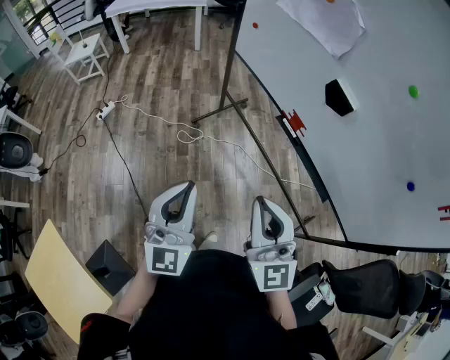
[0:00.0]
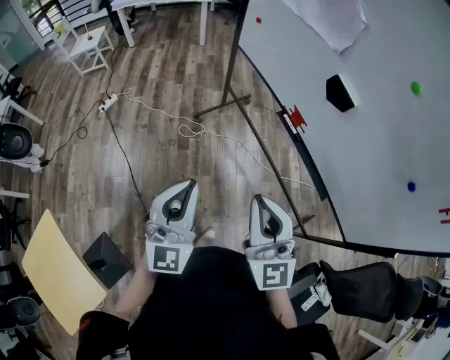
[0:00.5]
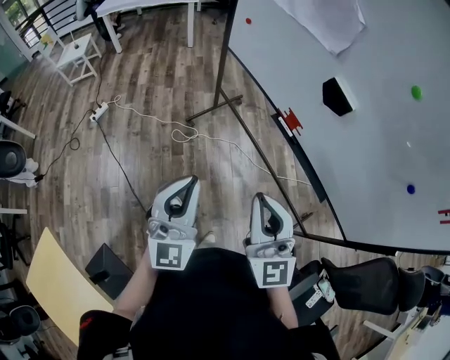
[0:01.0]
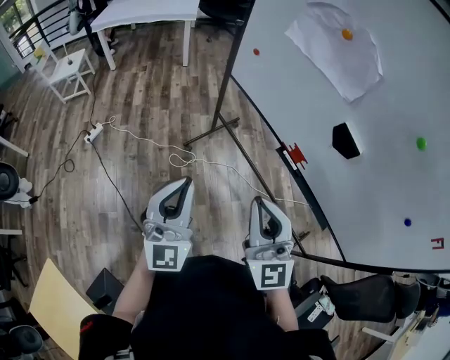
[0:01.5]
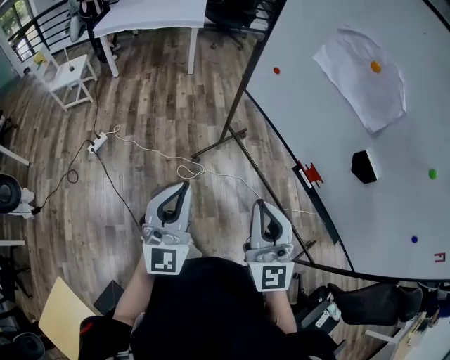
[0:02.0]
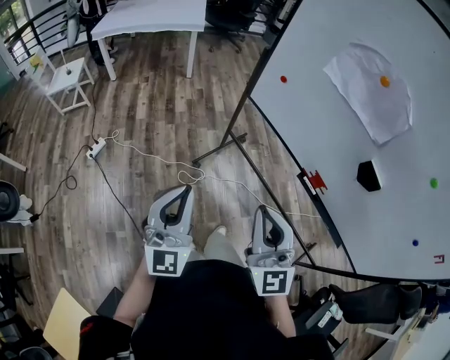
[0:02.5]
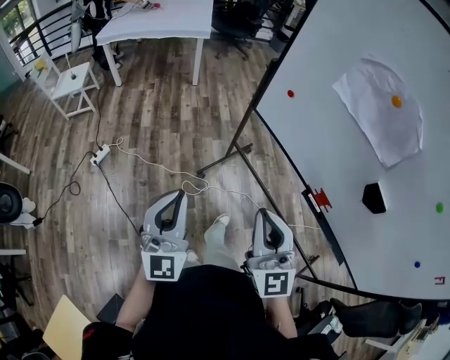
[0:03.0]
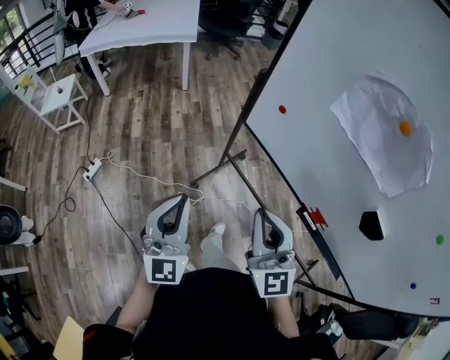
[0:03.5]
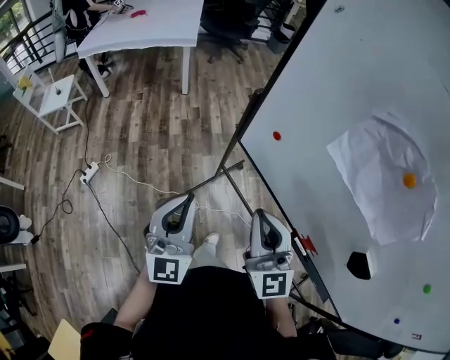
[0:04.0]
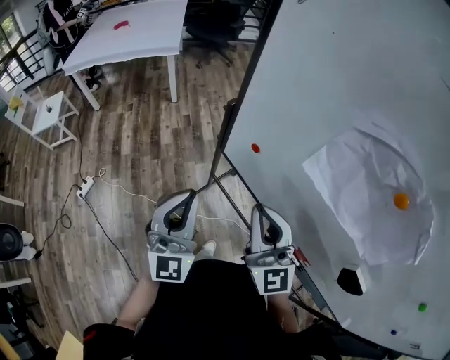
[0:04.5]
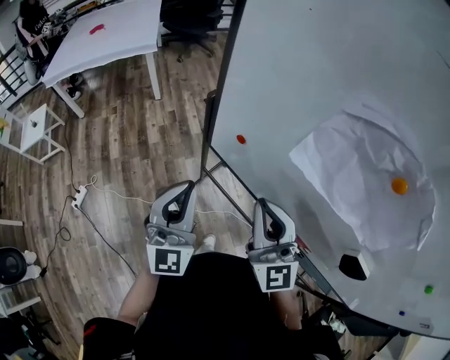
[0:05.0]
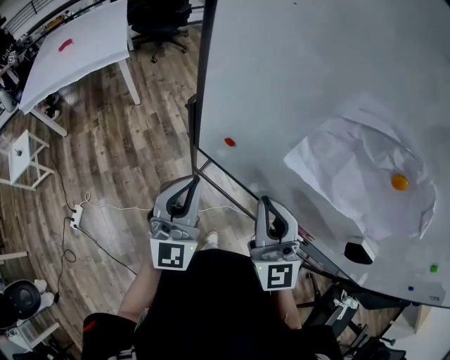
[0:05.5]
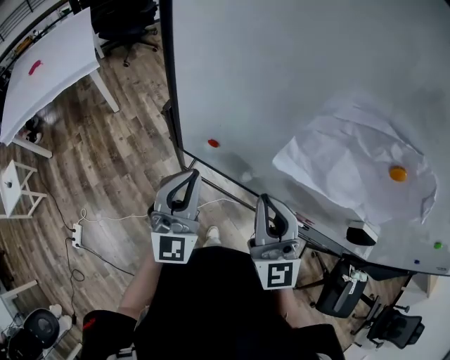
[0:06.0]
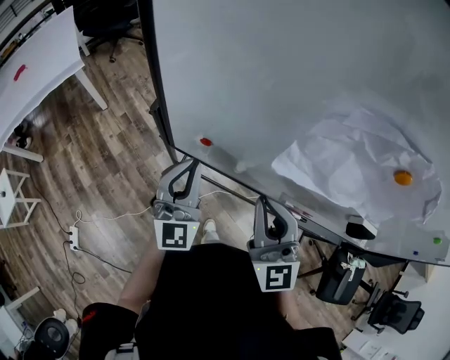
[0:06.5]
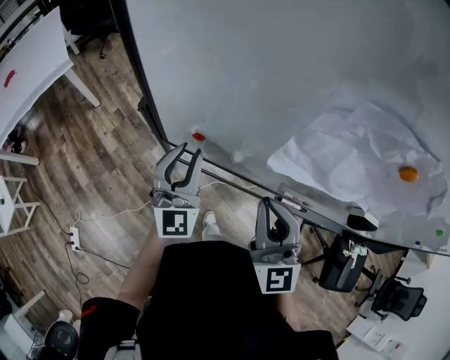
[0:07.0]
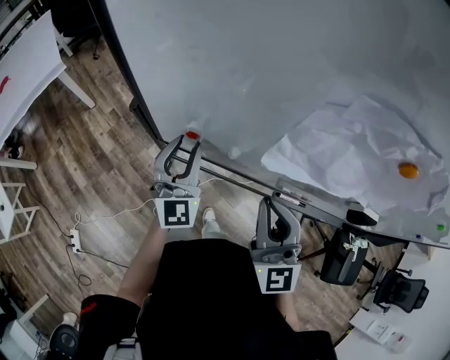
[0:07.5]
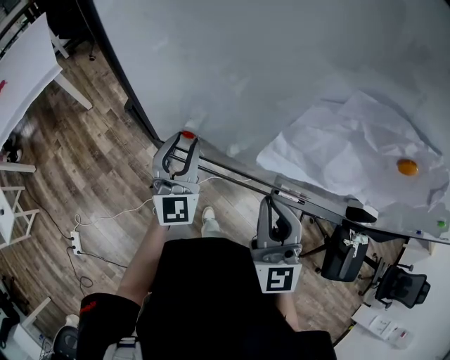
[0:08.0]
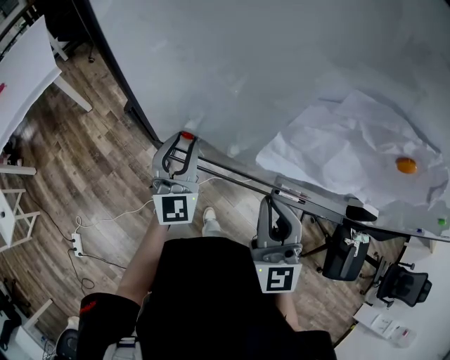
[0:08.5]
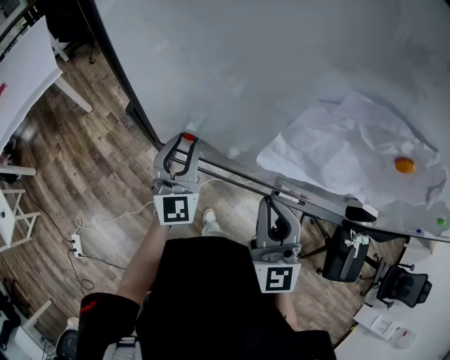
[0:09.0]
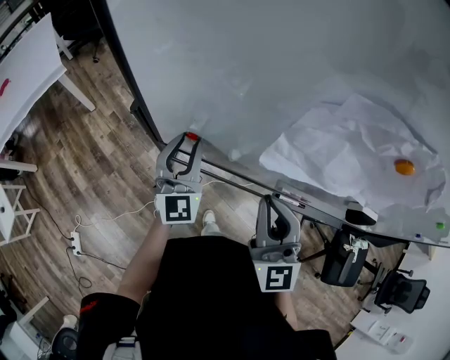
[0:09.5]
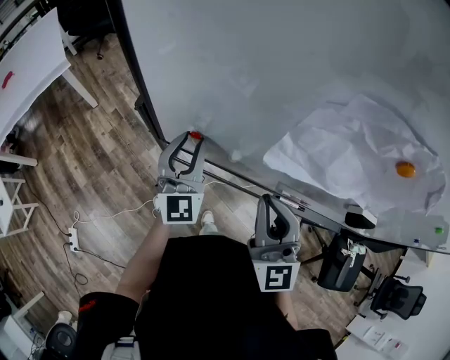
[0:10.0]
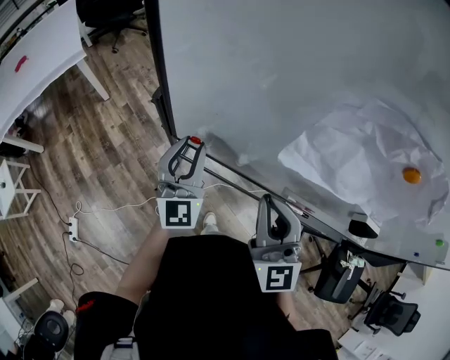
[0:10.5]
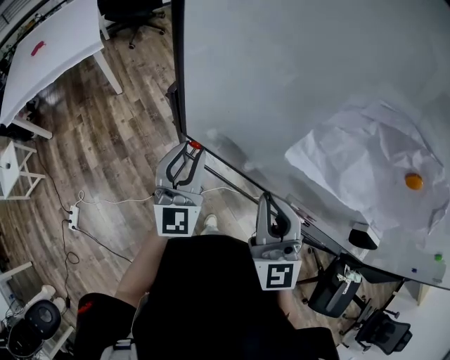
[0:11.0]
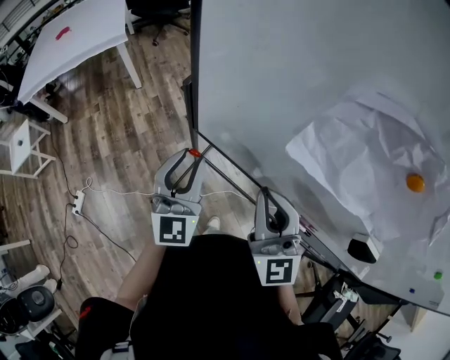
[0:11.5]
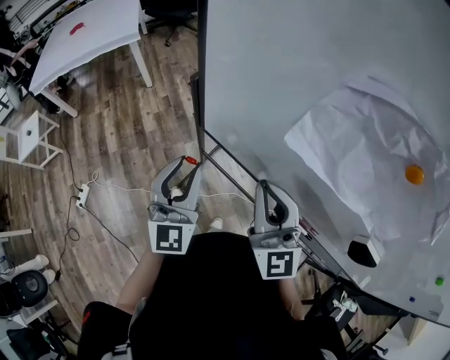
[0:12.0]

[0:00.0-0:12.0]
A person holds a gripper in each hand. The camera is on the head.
0:00.0 to 0:02.0: The two grippers go roughly 25 cm forward and to the left.
0:02.0 to 0:04.0: Both grippers travel together forward, about 30 cm.
0:04.0 to 0:06.0: The left gripper ends up roughly 25 cm from where it was, and changes its angle by some 30 degrees. Meanwhile the right gripper shifts by approximately 15 cm, and turns by approximately 30 degrees.
0:06.0 to 0:08.0: The left gripper is displaced forward and downward by roughly 15 cm, and opens its fingers.
0:08.0 to 0:10.0: The grippers make only small movements.
0:10.0 to 0:12.0: The left gripper goes roughly 15 cm backward and to the left, while the right gripper swivels some 20 degrees.

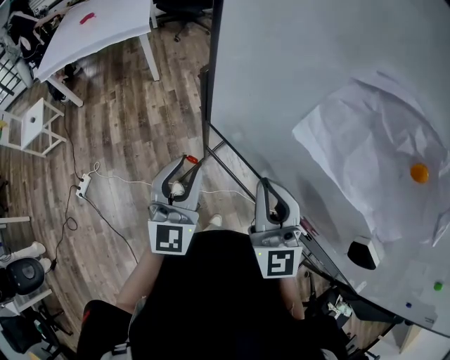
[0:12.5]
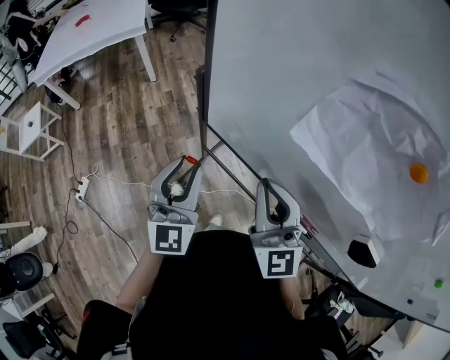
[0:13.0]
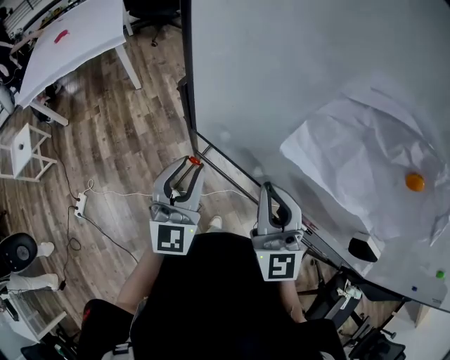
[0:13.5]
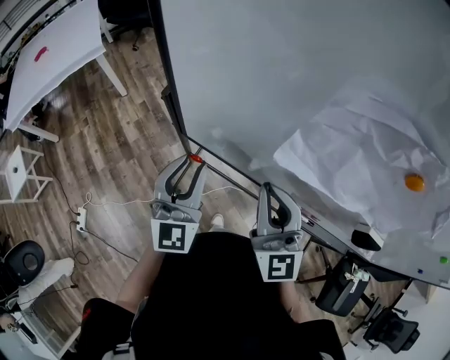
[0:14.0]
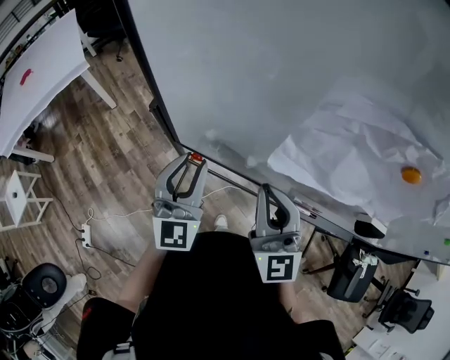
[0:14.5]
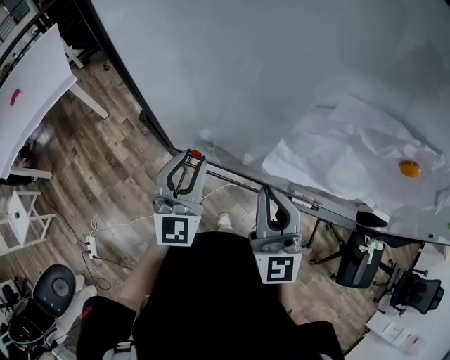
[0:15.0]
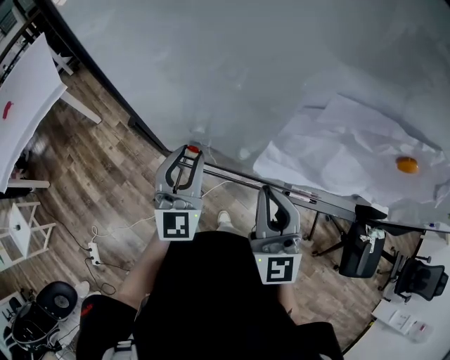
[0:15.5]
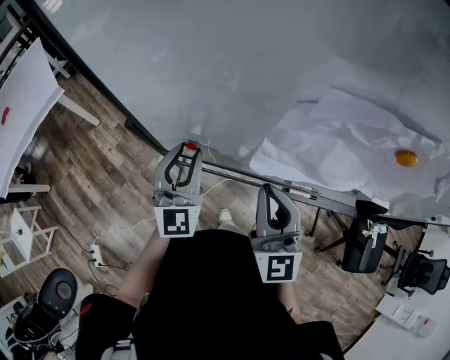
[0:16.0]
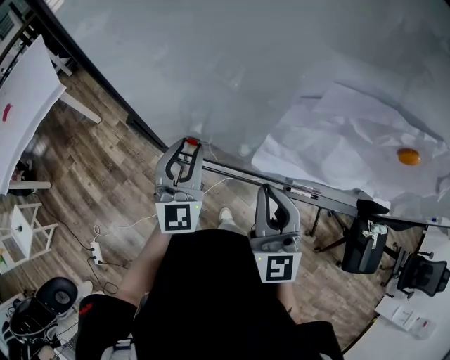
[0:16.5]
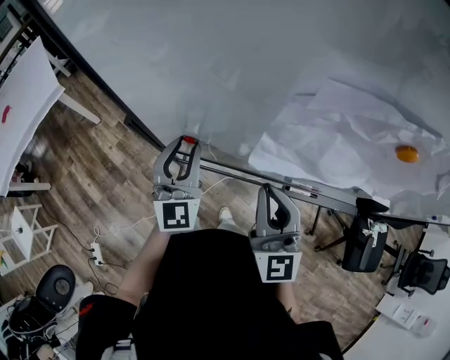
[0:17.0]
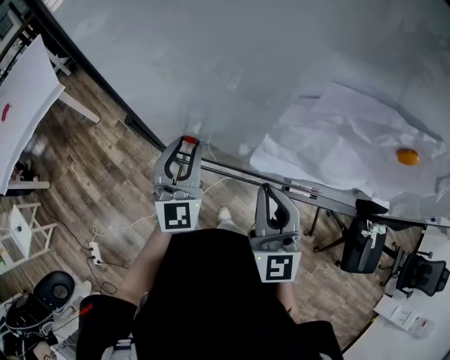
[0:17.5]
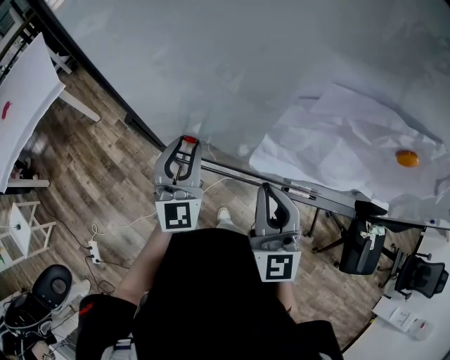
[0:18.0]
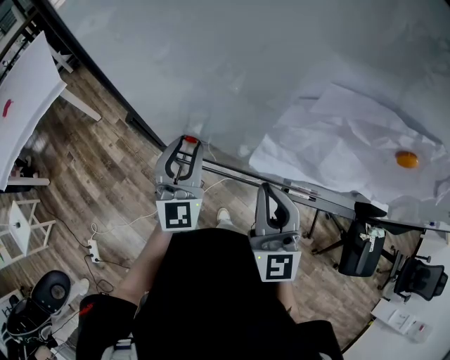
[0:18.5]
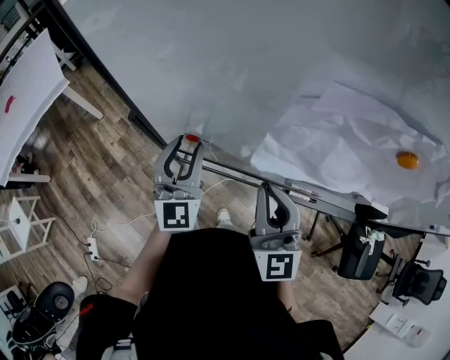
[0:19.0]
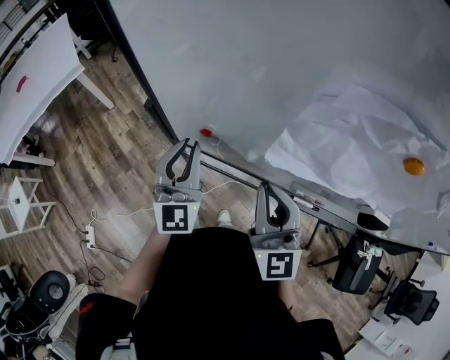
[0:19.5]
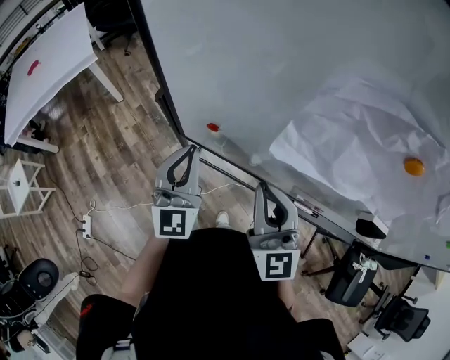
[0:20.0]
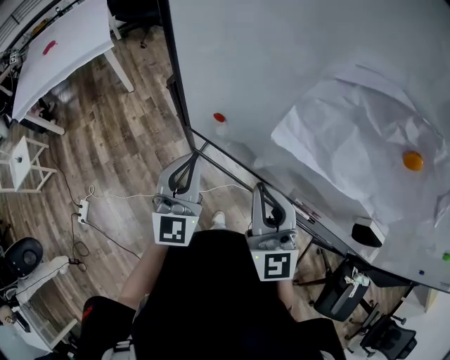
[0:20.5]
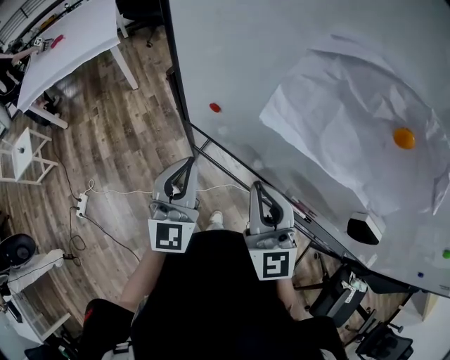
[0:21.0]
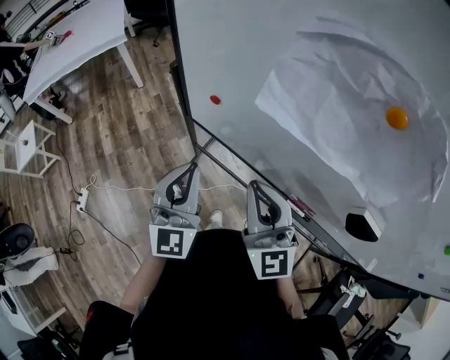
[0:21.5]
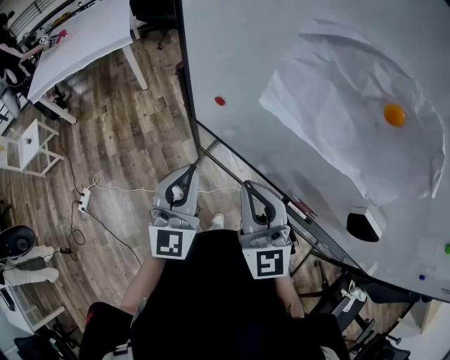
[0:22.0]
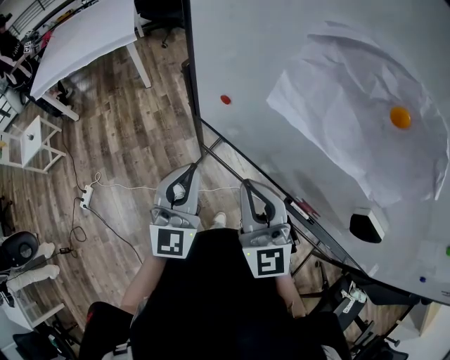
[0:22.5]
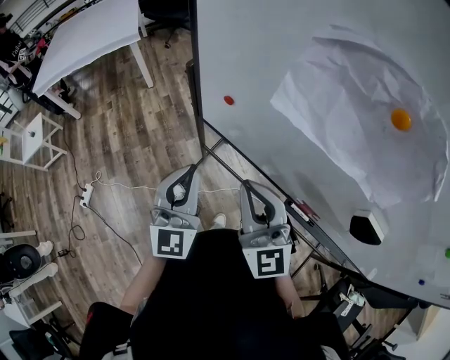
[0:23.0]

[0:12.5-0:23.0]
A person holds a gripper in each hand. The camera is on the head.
0:12.5 to 0:14.5: The left gripper shifts some 10 cm forward and to the right, and turns by approximately 20 degrees, while the right gripper changes place by some 5 cm, and turns by approximately 20 degrees.
0:14.5 to 0:16.5: The left gripper goes approximately 5 cm forward.
0:16.5 to 0:19.0: The two grippers keep their place.
0:19.0 to 0:21.0: The right gripper goes about 5 cm backward, and rotates some 20 degrees, while the left gripper shifts about 15 cm backward, and closes its fingers.
0:21.0 to 0:23.0: The left gripper travels backward by some 5 cm.

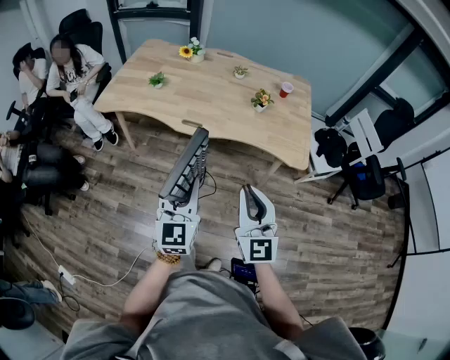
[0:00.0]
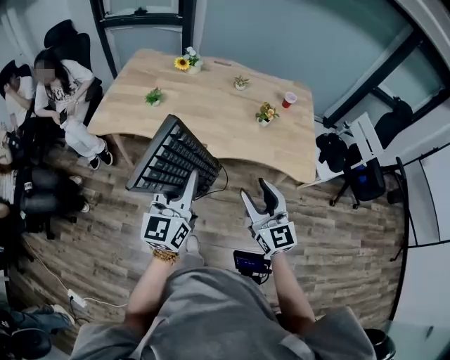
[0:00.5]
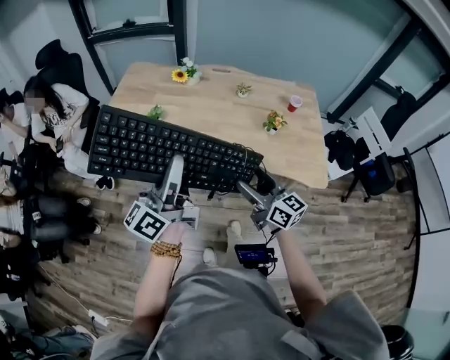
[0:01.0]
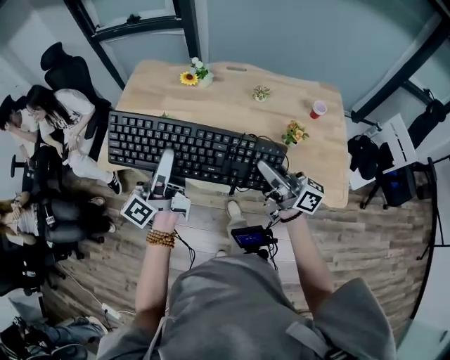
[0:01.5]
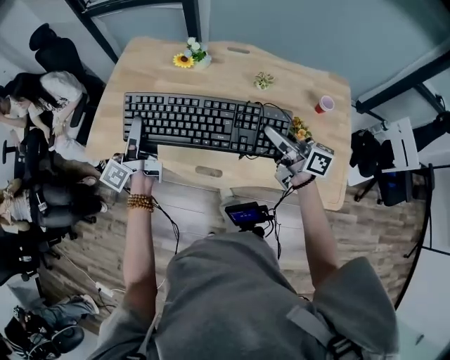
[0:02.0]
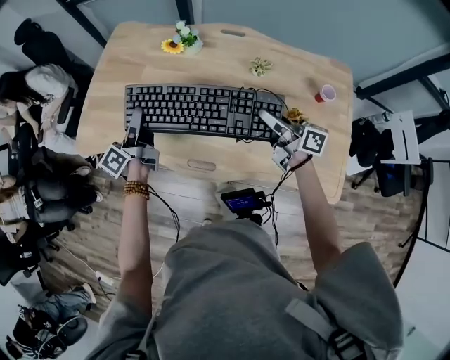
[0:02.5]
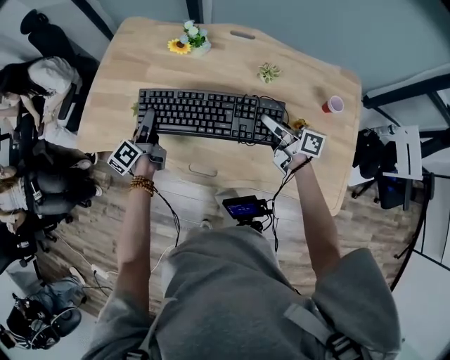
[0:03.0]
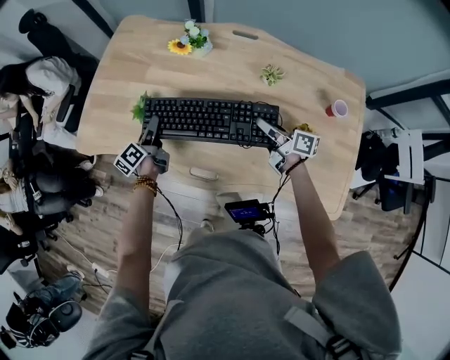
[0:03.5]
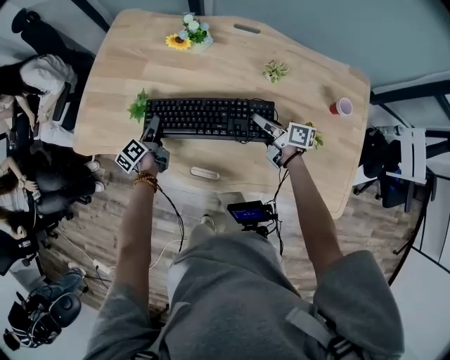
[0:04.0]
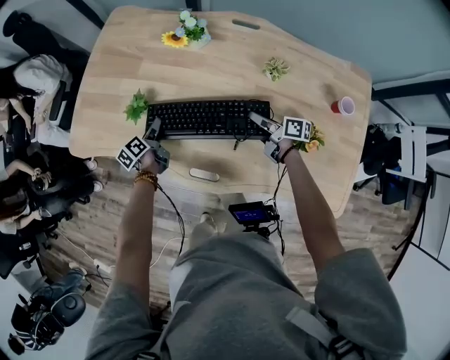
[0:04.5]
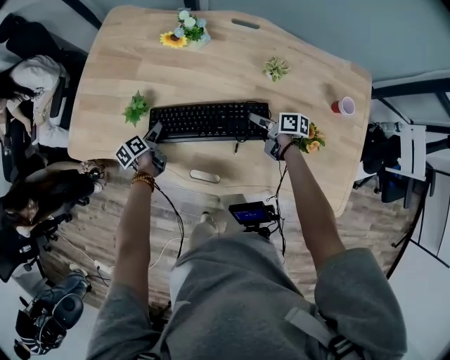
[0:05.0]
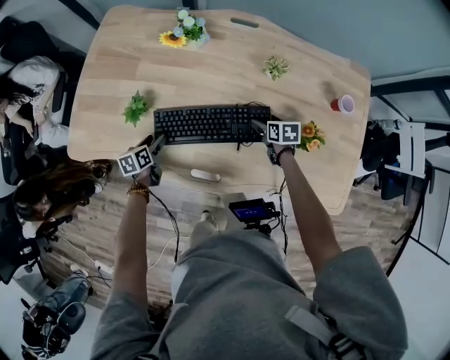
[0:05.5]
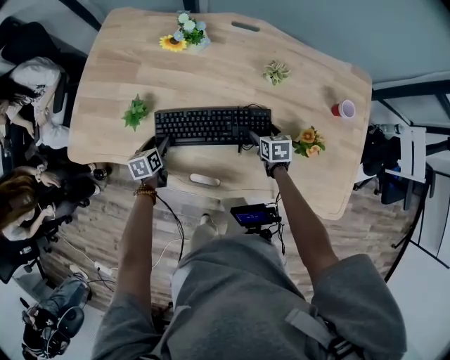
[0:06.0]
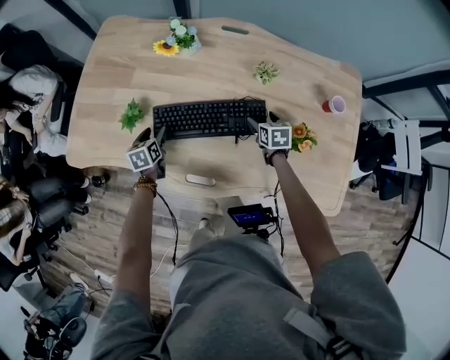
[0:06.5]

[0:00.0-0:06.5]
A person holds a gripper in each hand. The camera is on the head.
0:00.0 to 0:02.0: The pair of grippers is taken forward, roughly 50 cm. The right gripper twists approximately 70 degrees clockwise, seen from behind, and opens and closes again, while the left gripper rolls counterclockwise, seen from behind, by approximately 60 degrees.
0:02.0 to 0:04.5: The left gripper goes roughly 35 cm downward, angles its fingers downward, by about 50 degrees, and opens. The right gripper is displaced downward and forward by roughly 30 cm, and changes its angle by about 40 degrees.
0:04.5 to 0:06.5: The left gripper turns by about 40 degrees, while the right gripper travels to the right by some 5 cm, points its fingers approximately 30 degrees further downward, and opens up.
